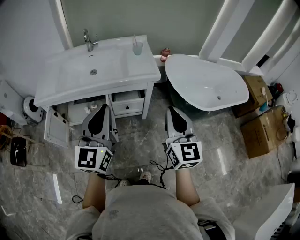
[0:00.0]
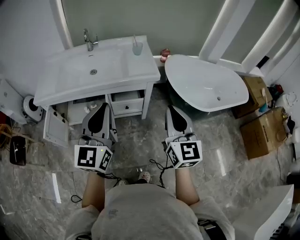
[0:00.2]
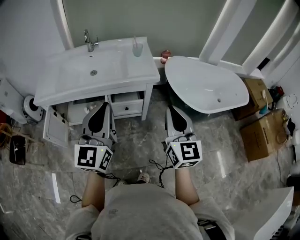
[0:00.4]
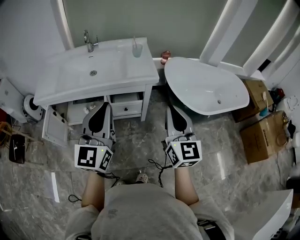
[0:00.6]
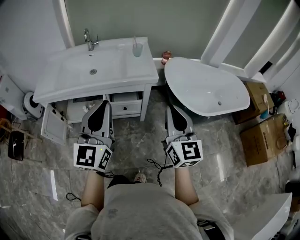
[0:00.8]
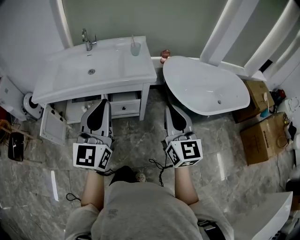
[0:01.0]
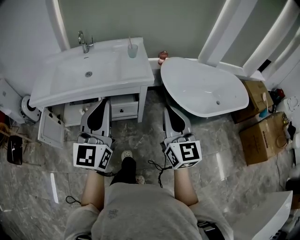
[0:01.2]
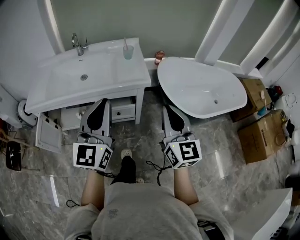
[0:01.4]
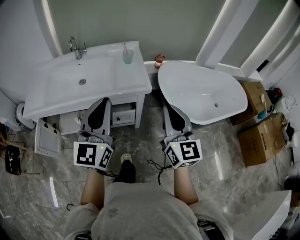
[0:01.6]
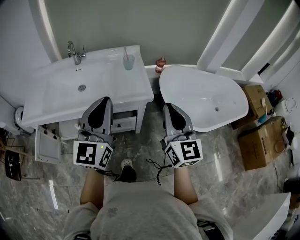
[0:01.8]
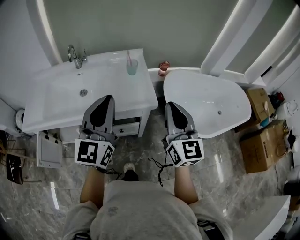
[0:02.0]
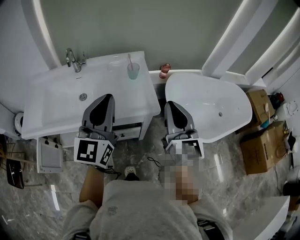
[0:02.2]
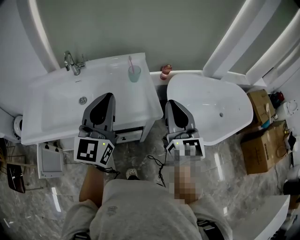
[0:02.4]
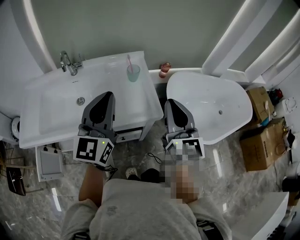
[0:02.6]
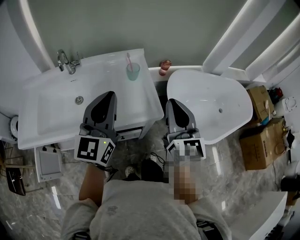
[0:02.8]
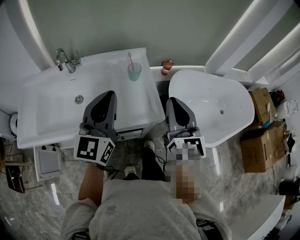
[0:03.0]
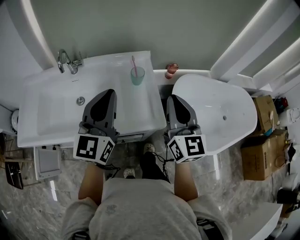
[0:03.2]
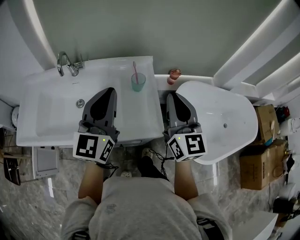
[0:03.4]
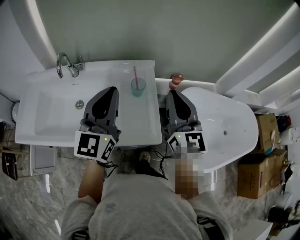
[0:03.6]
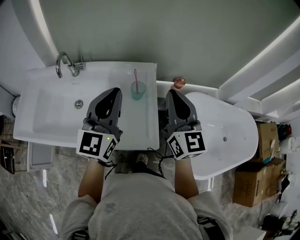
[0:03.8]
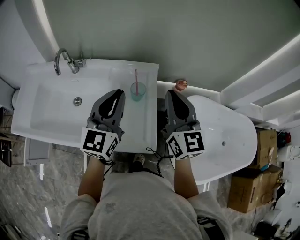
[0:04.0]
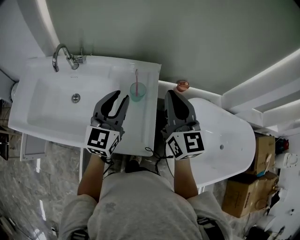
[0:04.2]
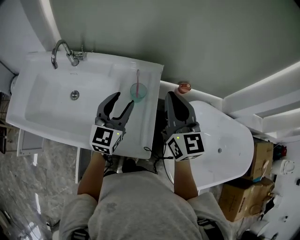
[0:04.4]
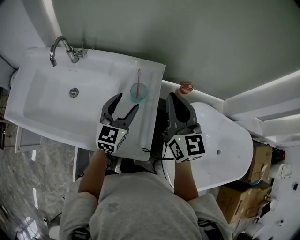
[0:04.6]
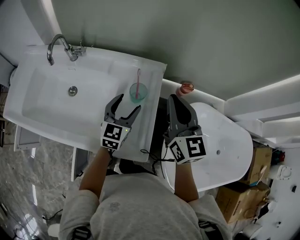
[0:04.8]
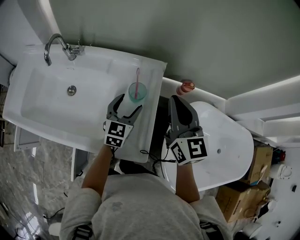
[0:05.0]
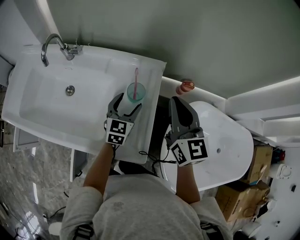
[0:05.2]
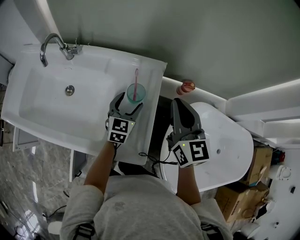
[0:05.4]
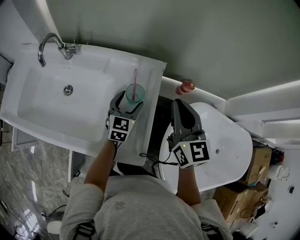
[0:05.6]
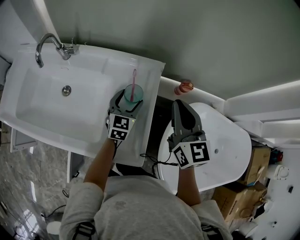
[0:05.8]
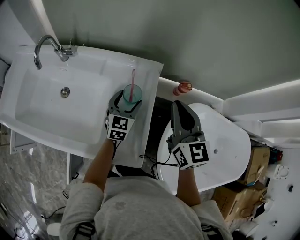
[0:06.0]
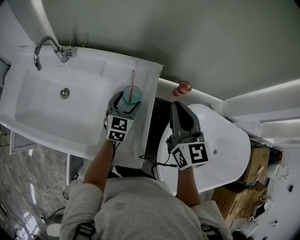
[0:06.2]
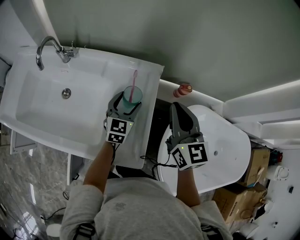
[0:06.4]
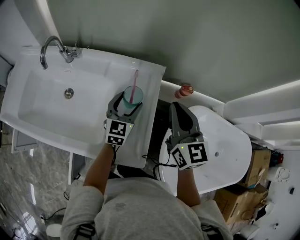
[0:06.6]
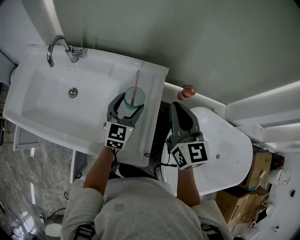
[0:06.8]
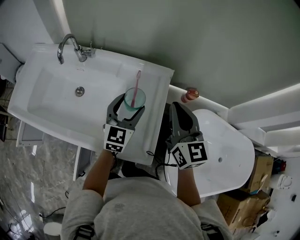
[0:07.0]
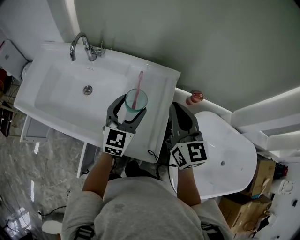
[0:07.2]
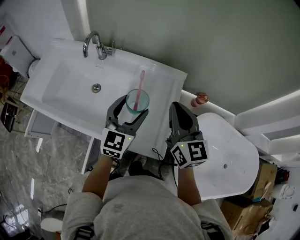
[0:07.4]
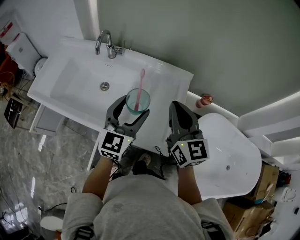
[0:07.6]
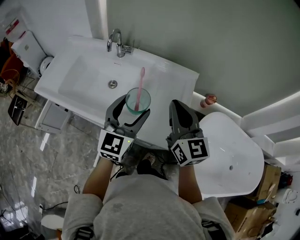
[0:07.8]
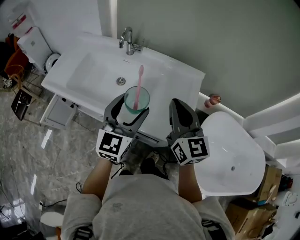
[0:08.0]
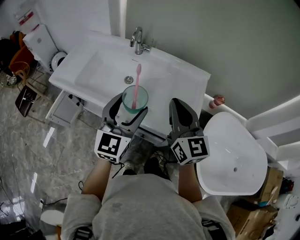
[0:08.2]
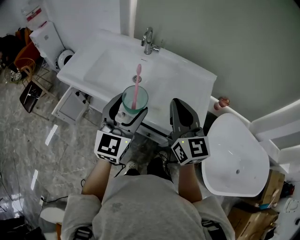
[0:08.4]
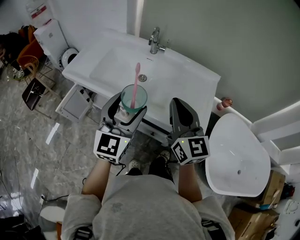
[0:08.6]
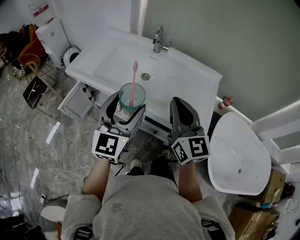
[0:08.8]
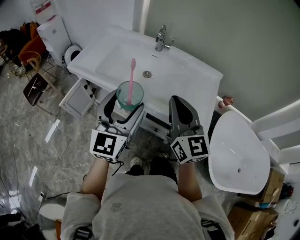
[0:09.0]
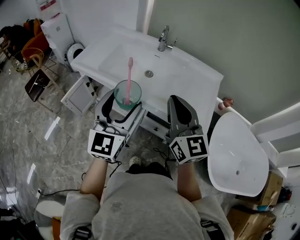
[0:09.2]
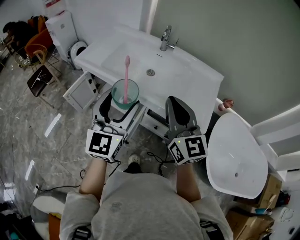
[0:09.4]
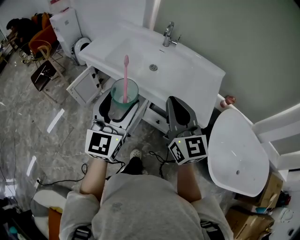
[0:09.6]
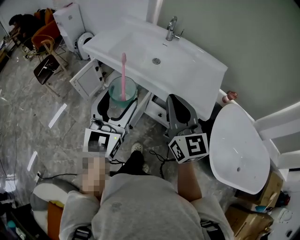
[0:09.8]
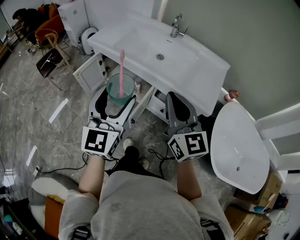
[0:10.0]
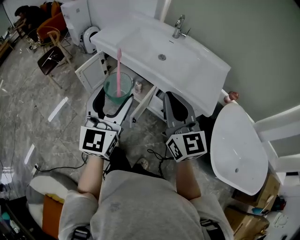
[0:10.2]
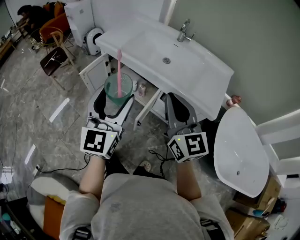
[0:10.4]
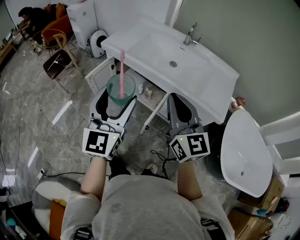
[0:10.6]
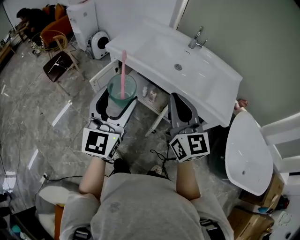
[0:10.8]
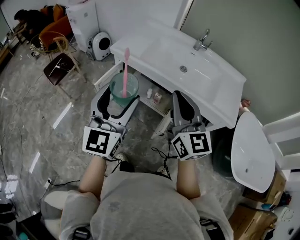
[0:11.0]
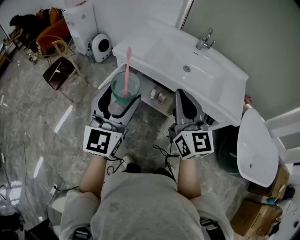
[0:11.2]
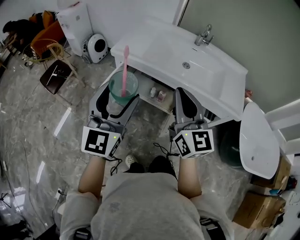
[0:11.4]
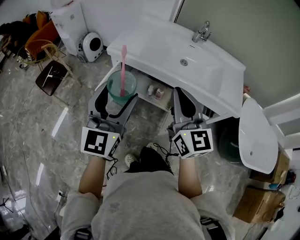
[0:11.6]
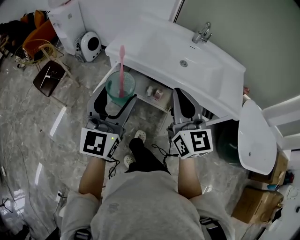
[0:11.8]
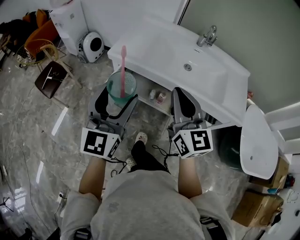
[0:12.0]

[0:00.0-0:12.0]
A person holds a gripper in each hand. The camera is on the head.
0:00.0 to 0:01.6: The two grippers go roughly 15 cm forward and to the right.
0:01.6 to 0:03.0: Both grippers move forward, about 25 cm.
0:03.0 to 0:04.4: The right gripper is displaced forward by some 25 cm, and turns by about 20 degrees. Meanwhile the left gripper travels forward and downward by roughly 25 cm, and opens.
0:04.4 to 0:06.0: The right gripper heads downward, covering about 5 cm. Meanwhile the left gripper heads downward and forward, covering roughly 20 cm, and opens its fingers.
0:06.0 to 0:07.6: The right gripper heads to the left and backward, covering roughly 20 cm; the left gripper heads upward, backward and to the left, covering approximately 30 cm.
0:07.6 to 0:09.0: The two grippers go approximately 30 cm to the left and backward.
0:09.0 to 0:10.4: The two grippers go roughly 20 cm backward and to the left.
0:10.4 to 0:12.0: The two grippers go some 30 cm to the left and forward.

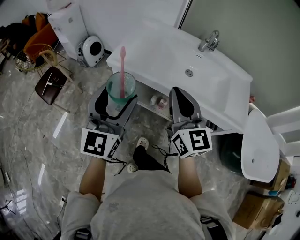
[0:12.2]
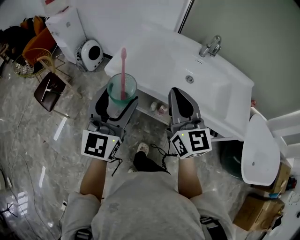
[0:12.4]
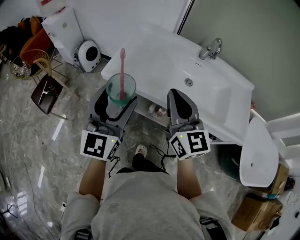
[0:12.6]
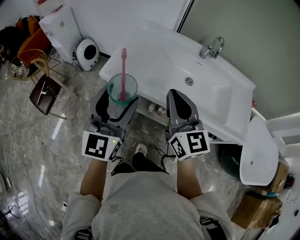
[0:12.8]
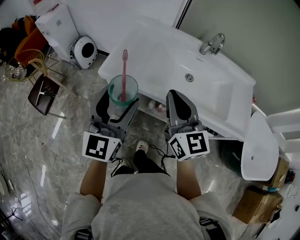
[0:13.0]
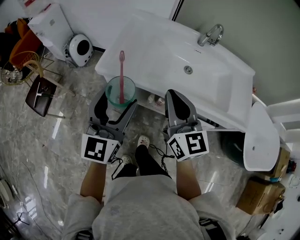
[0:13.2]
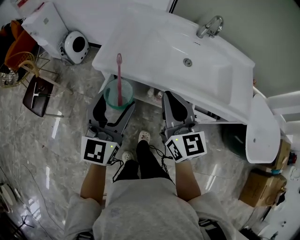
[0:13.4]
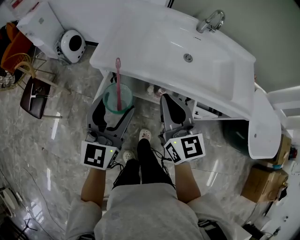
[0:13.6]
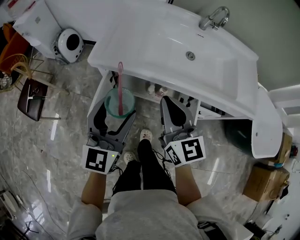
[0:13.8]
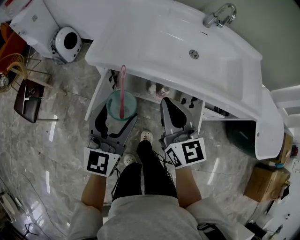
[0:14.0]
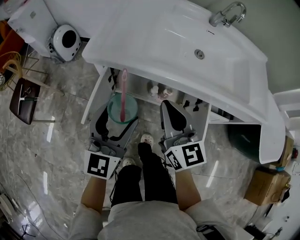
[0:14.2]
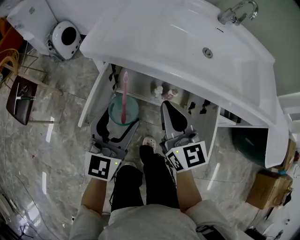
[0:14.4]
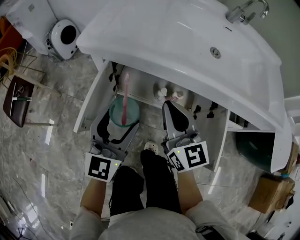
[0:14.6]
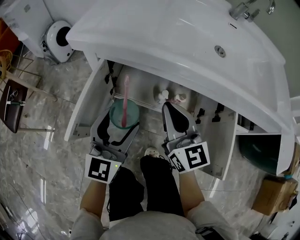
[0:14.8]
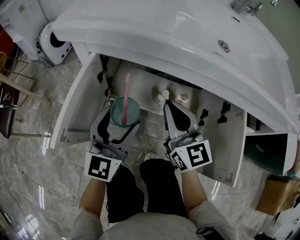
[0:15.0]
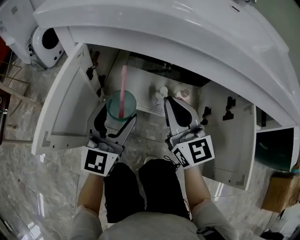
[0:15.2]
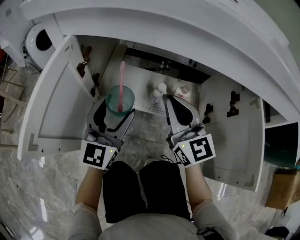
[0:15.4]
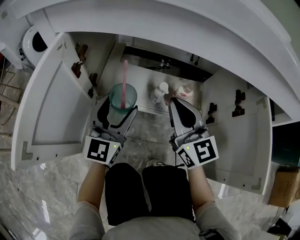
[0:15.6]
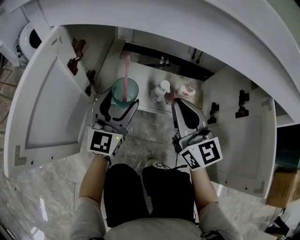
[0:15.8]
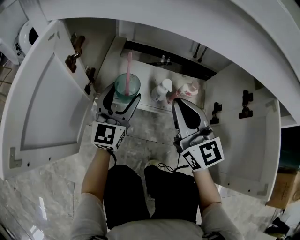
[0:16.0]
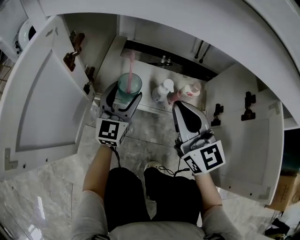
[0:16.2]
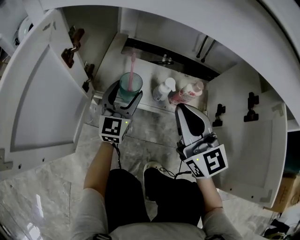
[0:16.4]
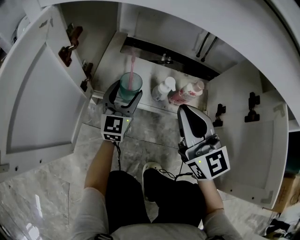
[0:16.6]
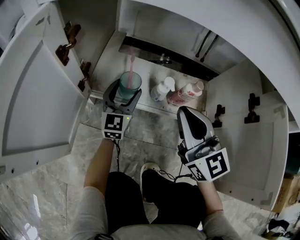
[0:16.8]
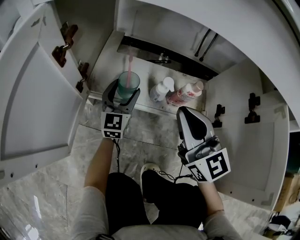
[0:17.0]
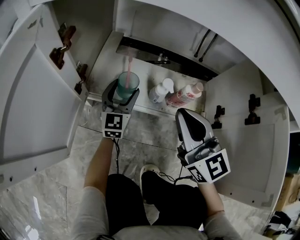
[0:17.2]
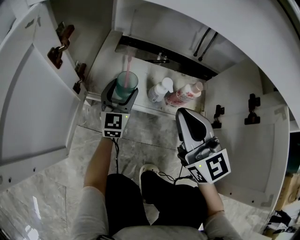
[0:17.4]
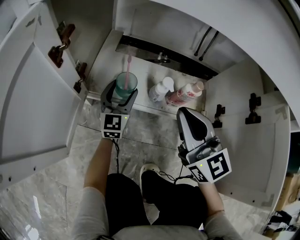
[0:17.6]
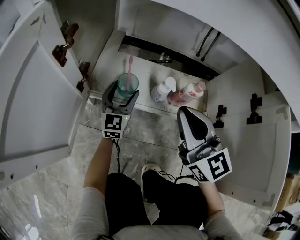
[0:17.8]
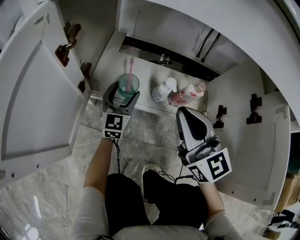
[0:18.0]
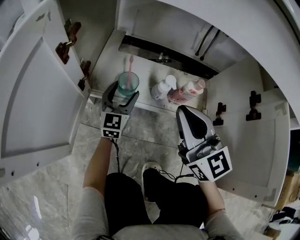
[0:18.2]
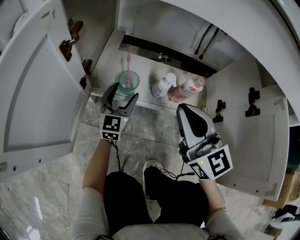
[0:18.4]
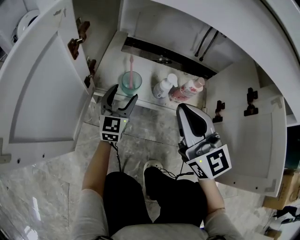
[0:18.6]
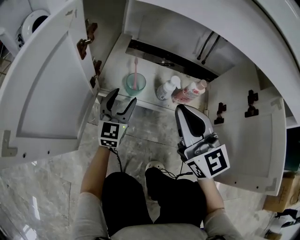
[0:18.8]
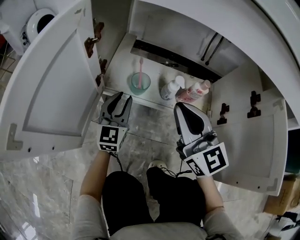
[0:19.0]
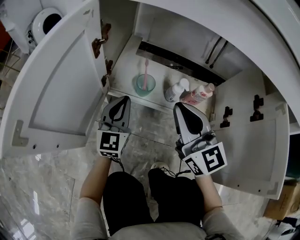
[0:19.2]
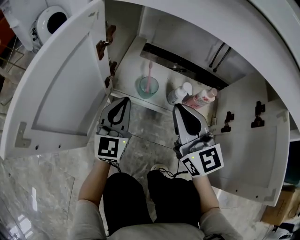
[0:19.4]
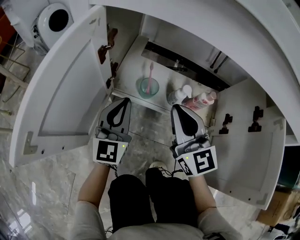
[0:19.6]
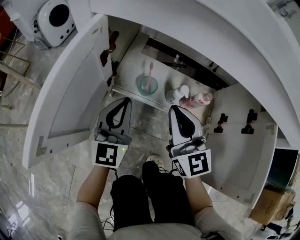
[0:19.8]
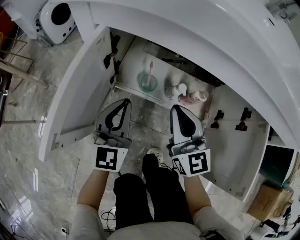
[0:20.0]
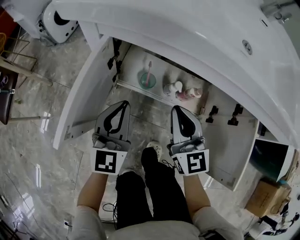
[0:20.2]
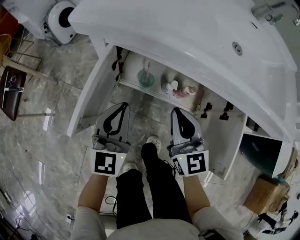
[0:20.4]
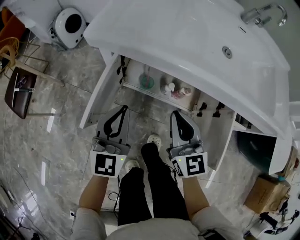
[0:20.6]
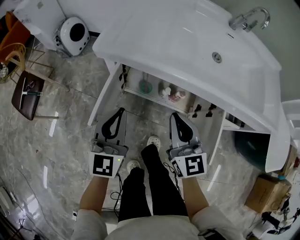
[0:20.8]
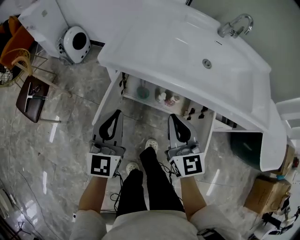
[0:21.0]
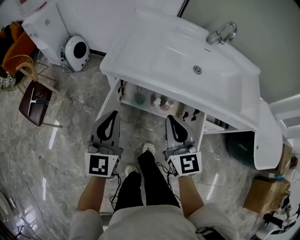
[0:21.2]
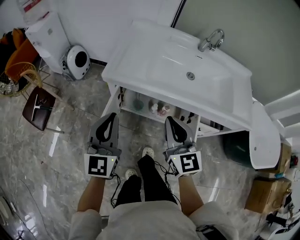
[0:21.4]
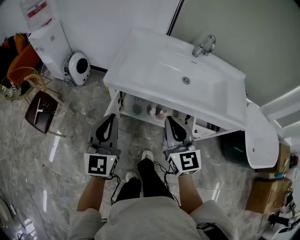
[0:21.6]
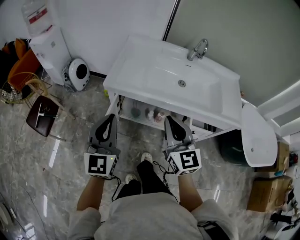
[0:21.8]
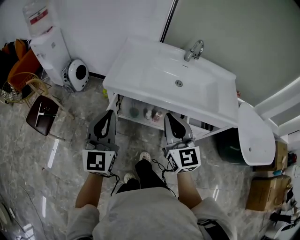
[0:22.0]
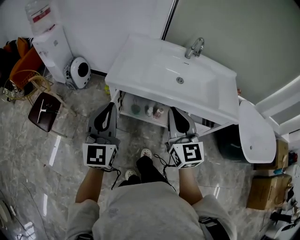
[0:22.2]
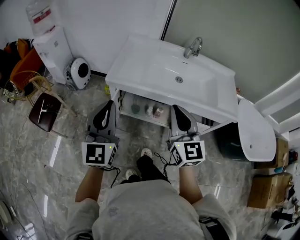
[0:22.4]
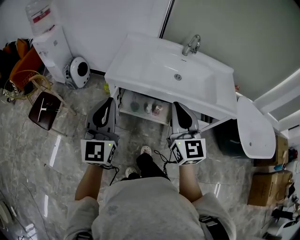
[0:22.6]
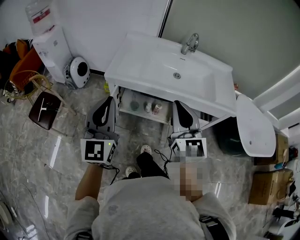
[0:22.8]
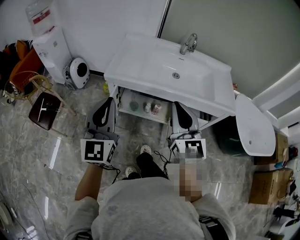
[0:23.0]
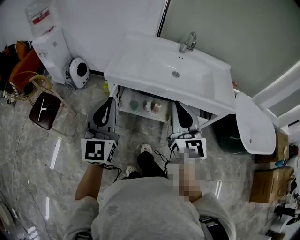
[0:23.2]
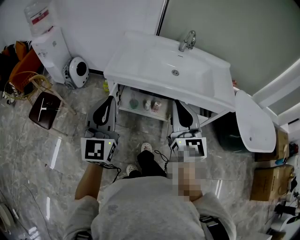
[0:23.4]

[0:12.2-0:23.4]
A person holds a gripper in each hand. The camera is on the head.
0:12.2 to 0:13.8: The grippers both shift downward and forward by approximately 15 cm.
0:13.8 to 0:15.4: The two grippers go about 40 cm downward.
0:15.4 to 0:17.0: The right gripper goes some 5 cm downward. The left gripper is displaced downward and forward by roughly 25 cm.
0:17.0 to 0:18.6: The grippers stay close to where they were, moving slightly.
0:18.6 to 0:20.2: The right gripper goes roughly 10 cm upward; the left gripper is displaced upward and backward by approximately 30 cm, and closes up.
0:20.2 to 0:21.8: Both grippers travel together upward, approximately 50 cm.
0:21.8 to 0:23.4: Both grippers move backward and upward, some 10 cm.

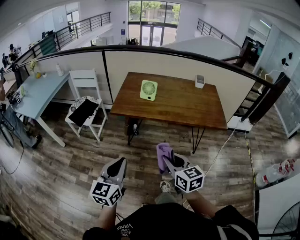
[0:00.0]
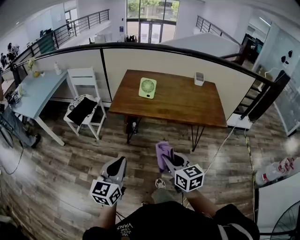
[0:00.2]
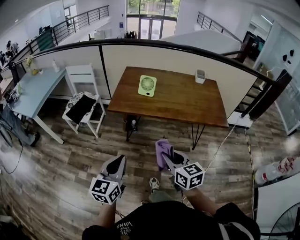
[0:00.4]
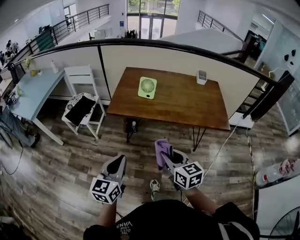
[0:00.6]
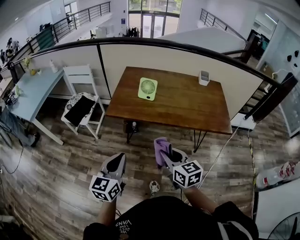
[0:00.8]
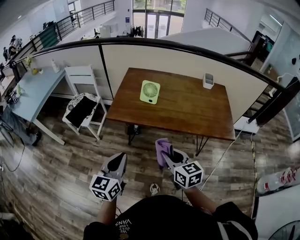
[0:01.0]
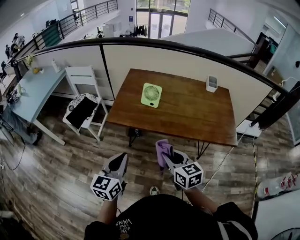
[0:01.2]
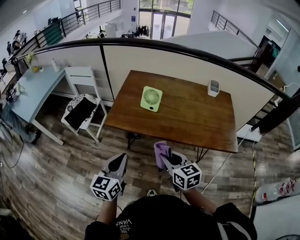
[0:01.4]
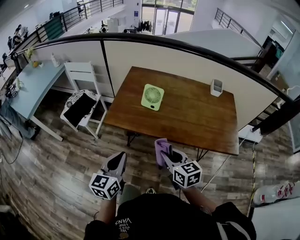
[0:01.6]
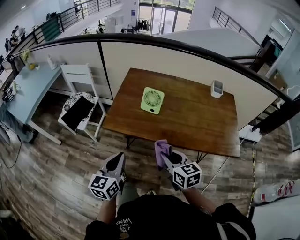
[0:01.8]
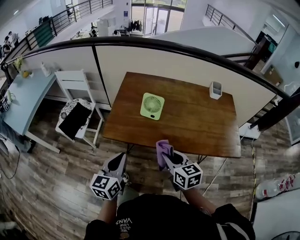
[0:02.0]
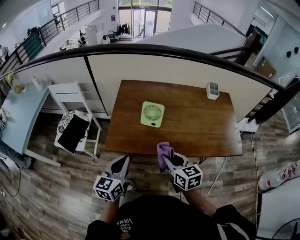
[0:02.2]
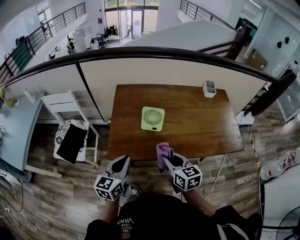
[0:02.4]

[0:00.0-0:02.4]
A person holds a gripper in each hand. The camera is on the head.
0:00.0 to 0:01.2: Both grippers travel together forward, approximately 20 cm.
0:01.2 to 0:02.4: The grippers both shift forward by approximately 20 cm.
